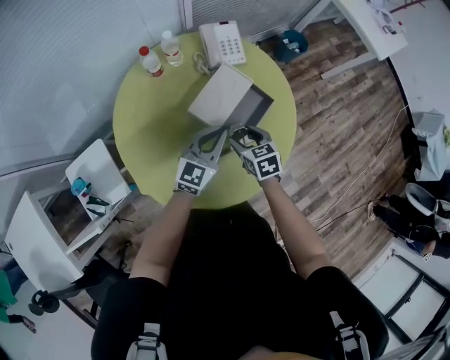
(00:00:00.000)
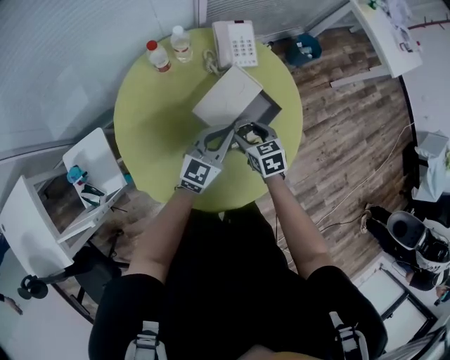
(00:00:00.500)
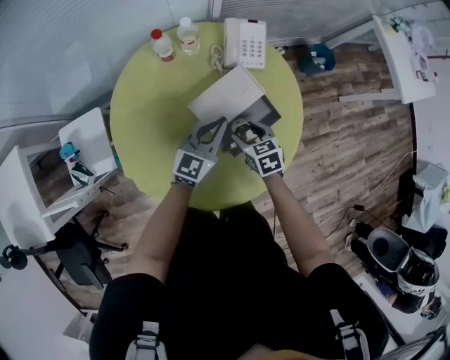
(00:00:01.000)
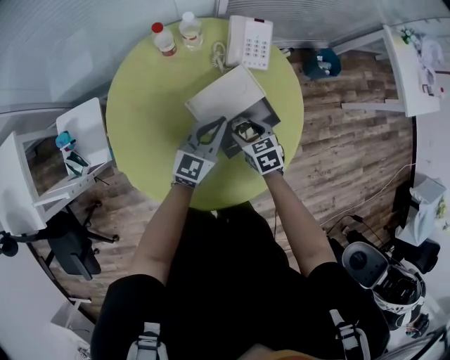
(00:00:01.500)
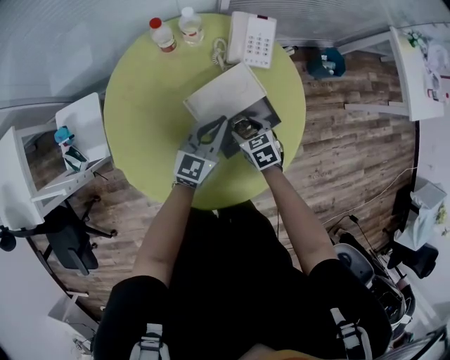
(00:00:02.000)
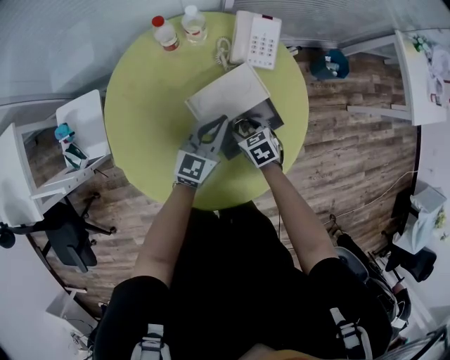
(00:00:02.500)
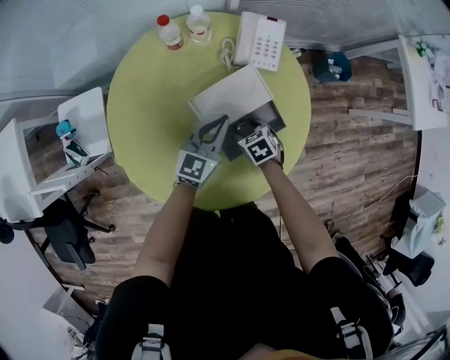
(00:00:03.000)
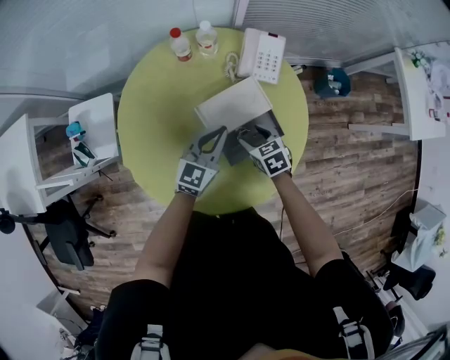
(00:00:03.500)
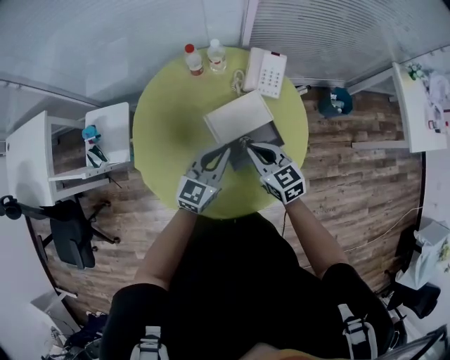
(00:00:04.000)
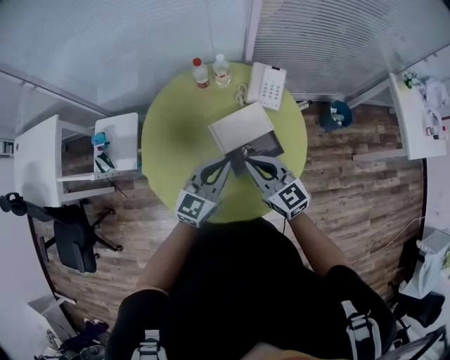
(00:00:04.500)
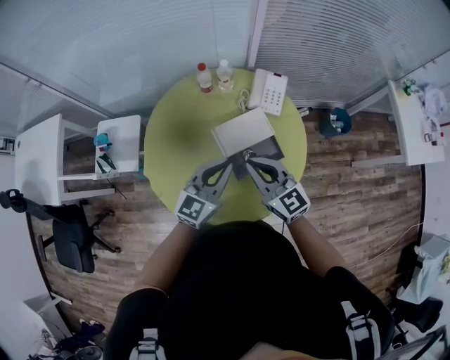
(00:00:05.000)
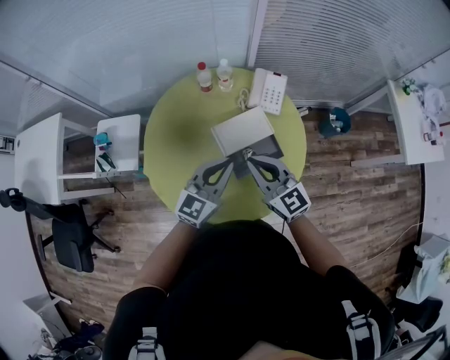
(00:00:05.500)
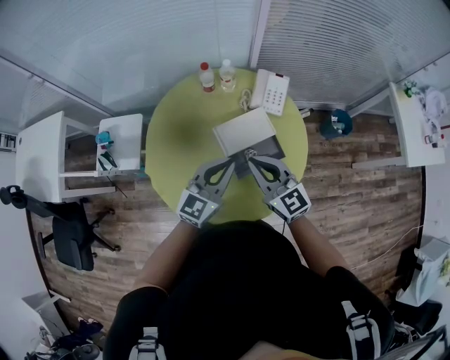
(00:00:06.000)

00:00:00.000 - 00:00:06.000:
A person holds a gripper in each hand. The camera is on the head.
00:00:00.000 - 00:00:02.000: The left gripper changes place by some 10 cm, and changes its angle by approximately 20 degrees, while the right gripper heads downward, covering approximately 10 cm, and rotates roughly 30 degrees.
00:00:02.000 - 00:00:04.000: The left gripper shifts about 10 cm upward and backward, while the right gripper moves upward, approximately 20 cm, turns by about 30 degrees, and closes.
00:00:04.000 - 00:00:06.000: The two grippers go some 10 cm upward. The right gripper changes its angle by about 20 degrees.

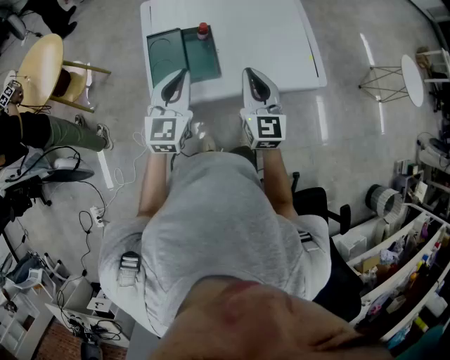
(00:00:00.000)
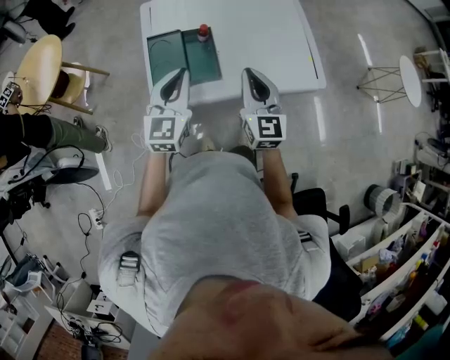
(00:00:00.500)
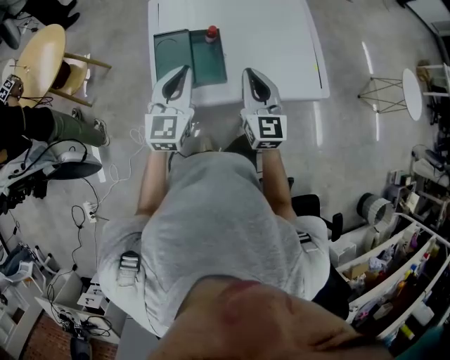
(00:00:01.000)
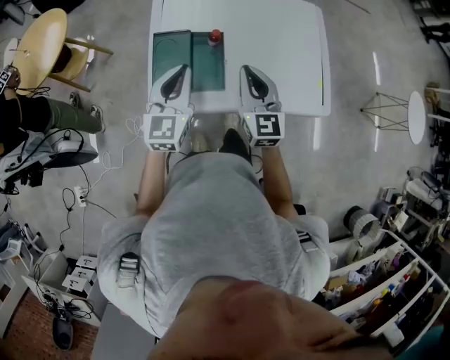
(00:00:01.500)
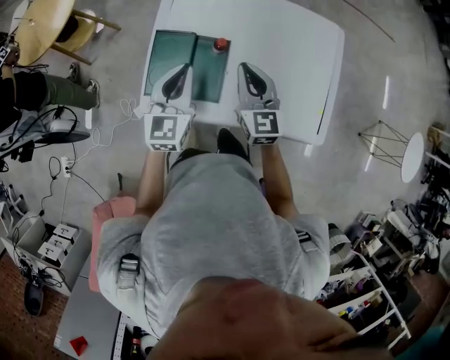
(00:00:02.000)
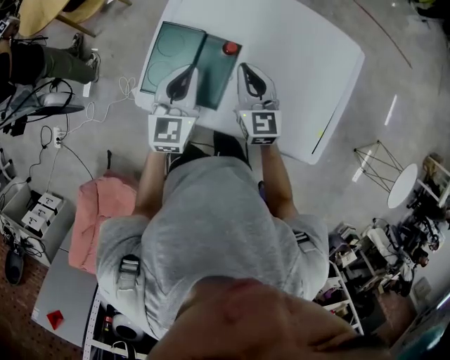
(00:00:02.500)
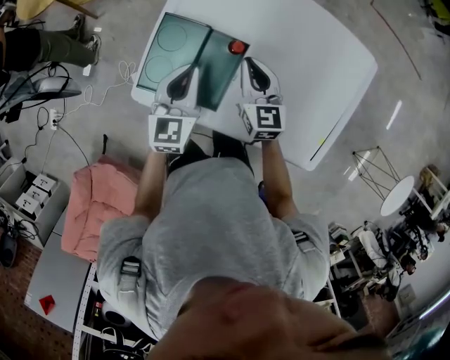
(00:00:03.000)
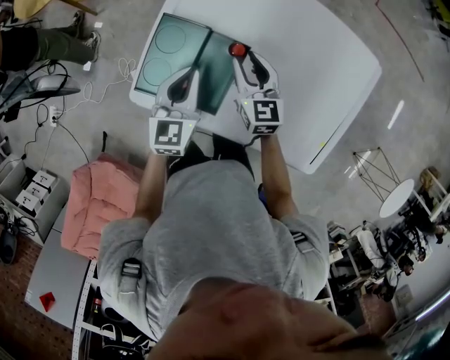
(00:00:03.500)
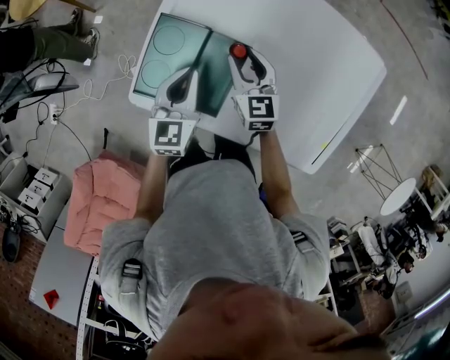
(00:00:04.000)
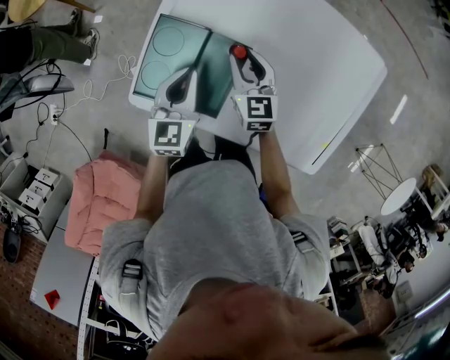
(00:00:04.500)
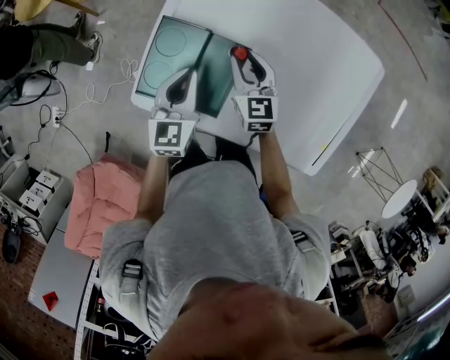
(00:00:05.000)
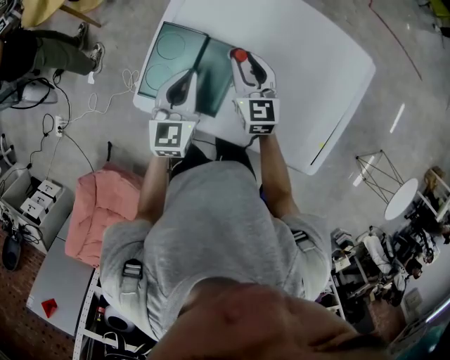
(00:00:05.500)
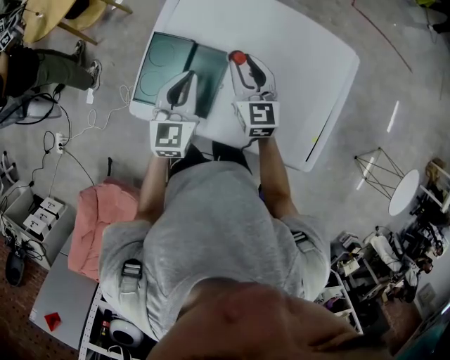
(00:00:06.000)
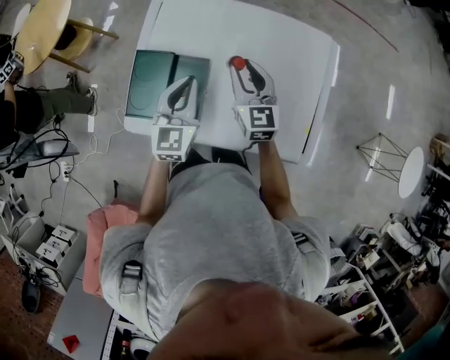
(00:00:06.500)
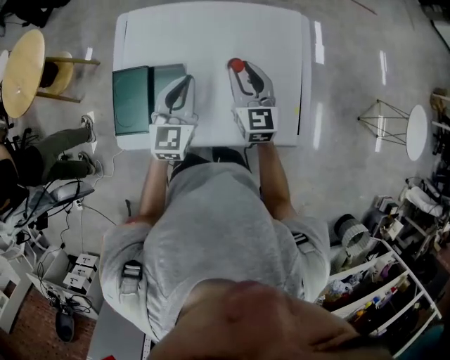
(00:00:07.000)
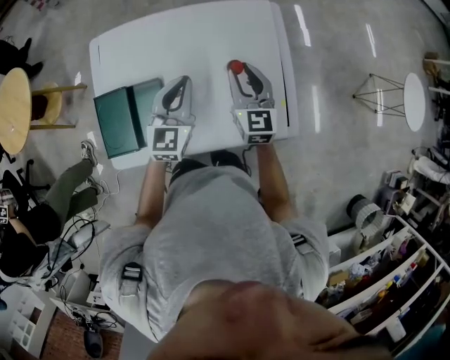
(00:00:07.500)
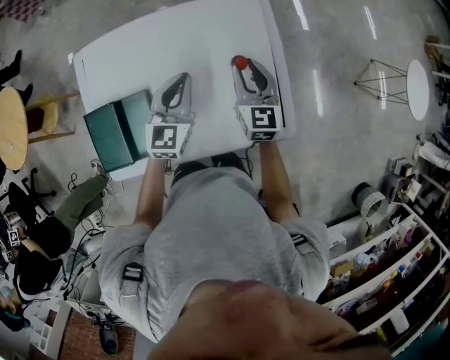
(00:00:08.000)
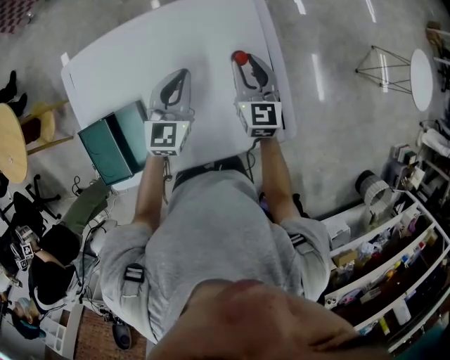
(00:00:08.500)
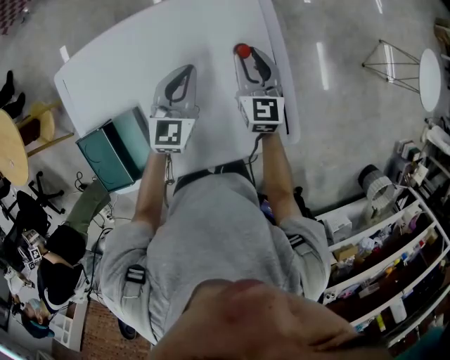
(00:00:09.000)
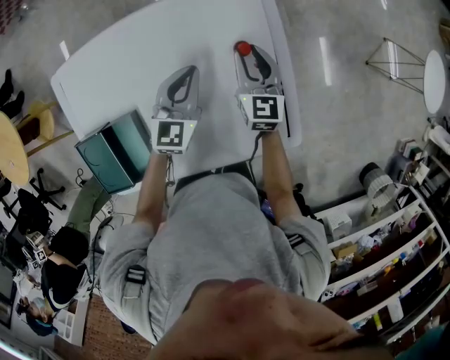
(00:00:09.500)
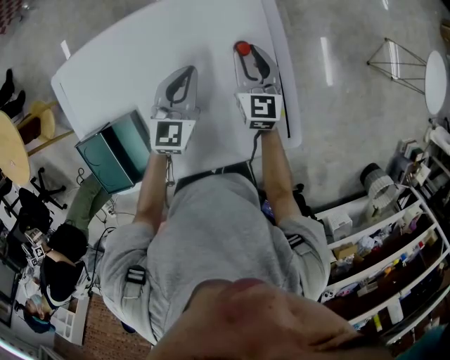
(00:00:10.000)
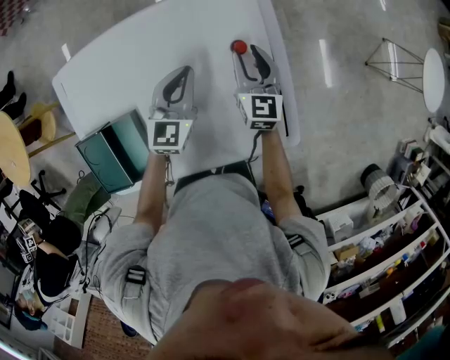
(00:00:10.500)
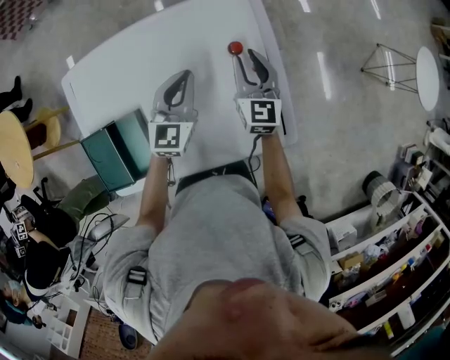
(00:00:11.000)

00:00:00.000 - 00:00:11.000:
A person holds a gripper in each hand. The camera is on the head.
00:00:00.000 - 00:00:02.000: Both grippers travel together forward, some 15 cm. The right gripper turns by roughly 20 degrees.
00:00:02.000 - 00:00:03.500: The left gripper heads downward, covering some 10 cm. The right gripper travels downward and forward by about 15 cm, and opens its fingers.
00:00:03.500 - 00:00:05.500: There are only small adjustments of the grippers.
00:00:05.500 - 00:00:07.500: The left gripper moves about 20 cm, and rotates about 30 degrees. The right gripper moves about 25 cm, and turns by approximately 30 degrees.
00:00:07.500 - 00:00:09.000: Both grippers move forward, downward and to the right, roughly 20 cm.
00:00:09.000 - 00:00:11.000: There are only small adjustments of the grippers.

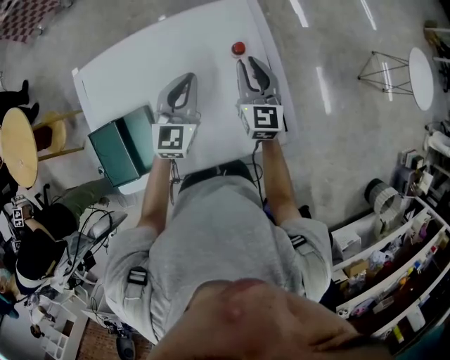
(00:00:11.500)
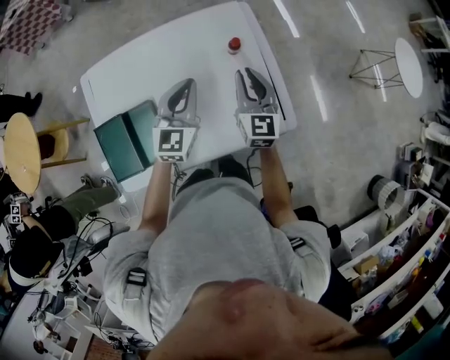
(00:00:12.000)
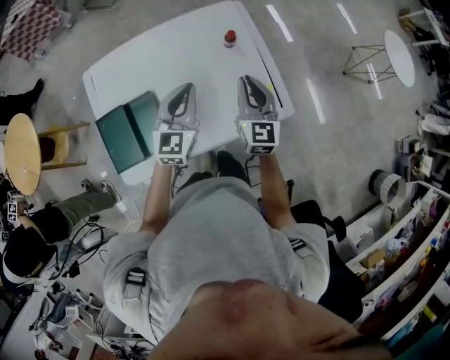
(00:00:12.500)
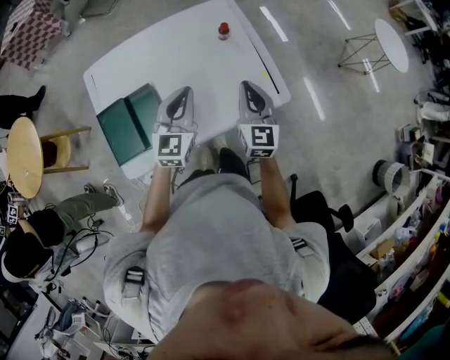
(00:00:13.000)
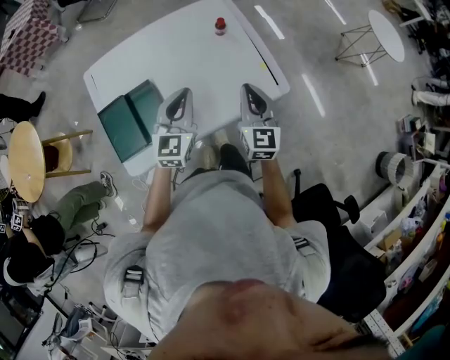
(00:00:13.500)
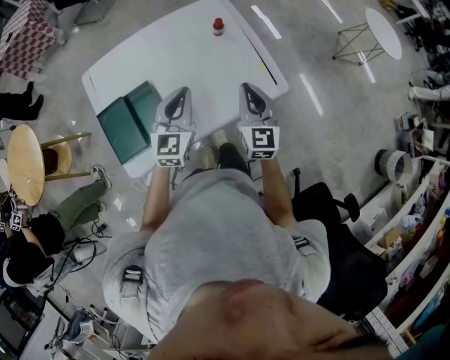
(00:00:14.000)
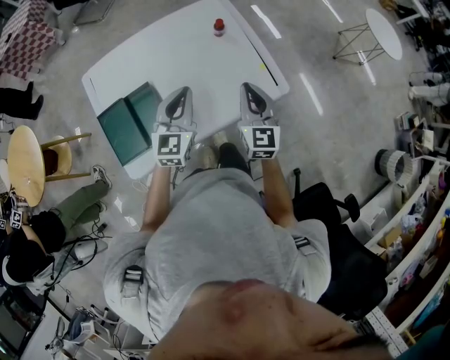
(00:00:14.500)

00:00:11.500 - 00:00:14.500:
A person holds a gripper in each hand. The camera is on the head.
00:00:11.500 - 00:00:13.000: The two grippers go roughly 25 cm backward. The right gripper closes up.
00:00:13.000 - 00:00:14.500: The grippers make only small movements.

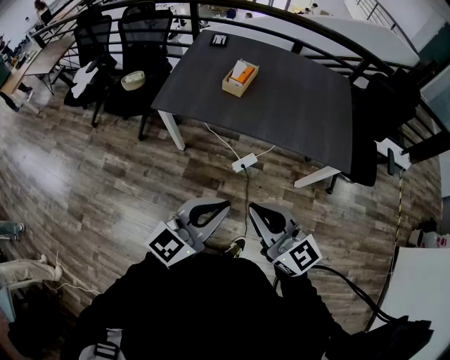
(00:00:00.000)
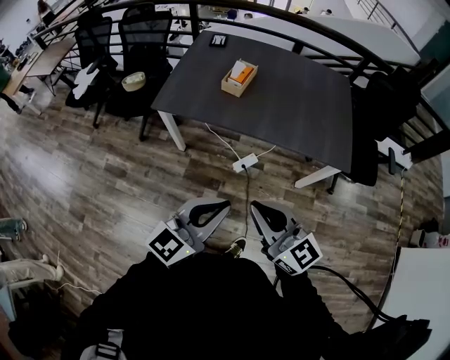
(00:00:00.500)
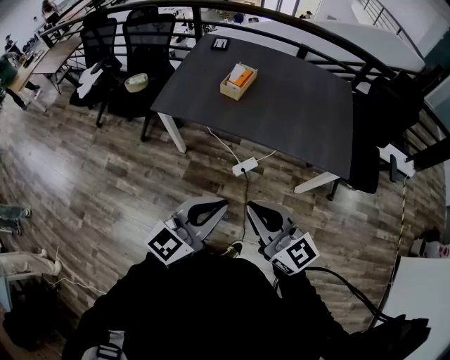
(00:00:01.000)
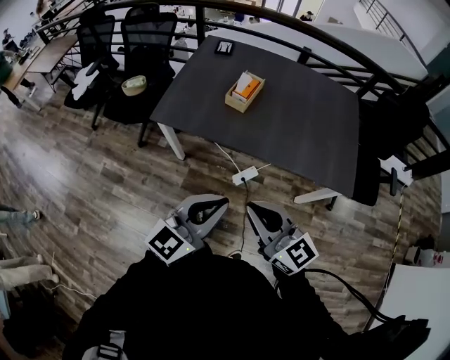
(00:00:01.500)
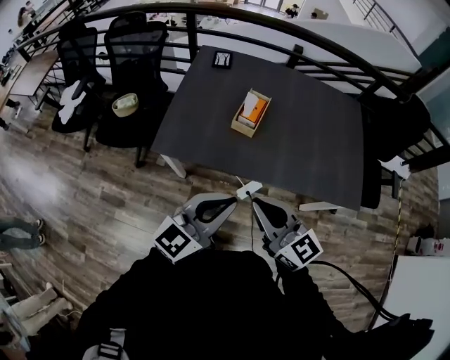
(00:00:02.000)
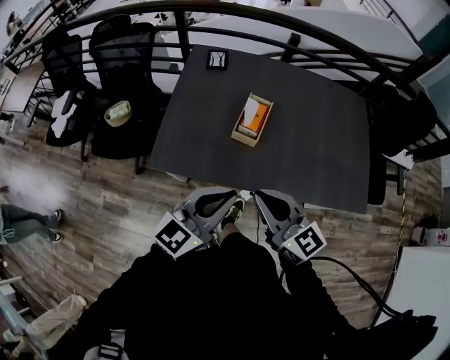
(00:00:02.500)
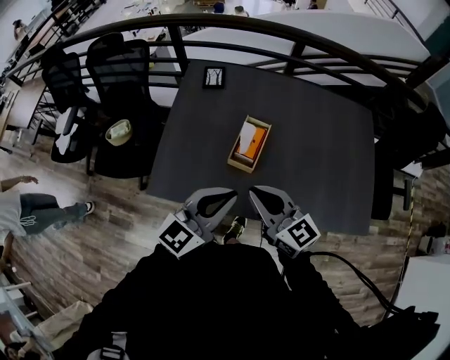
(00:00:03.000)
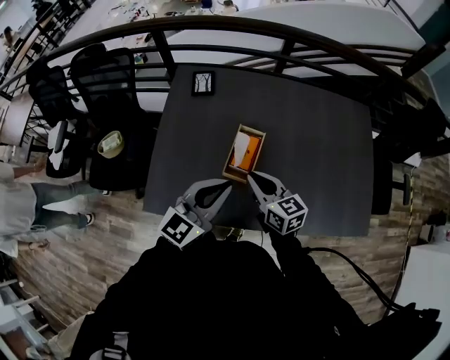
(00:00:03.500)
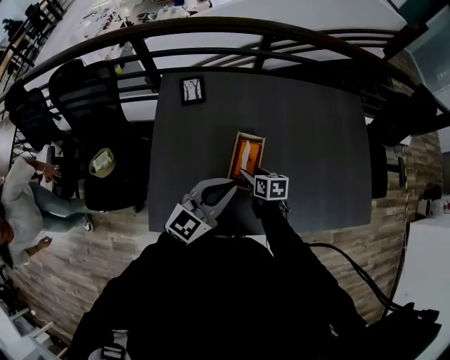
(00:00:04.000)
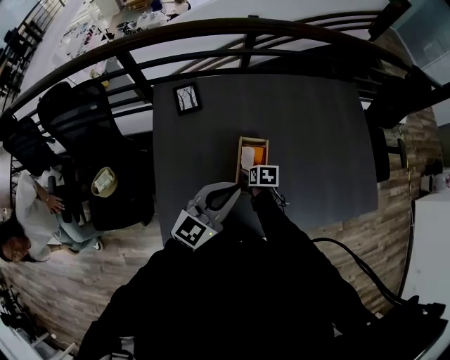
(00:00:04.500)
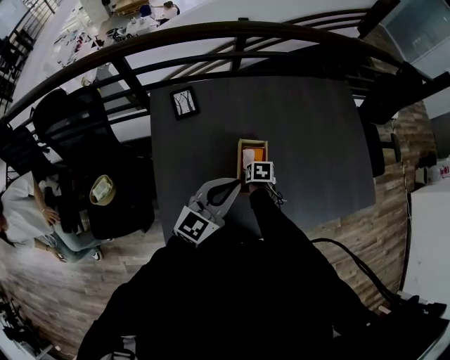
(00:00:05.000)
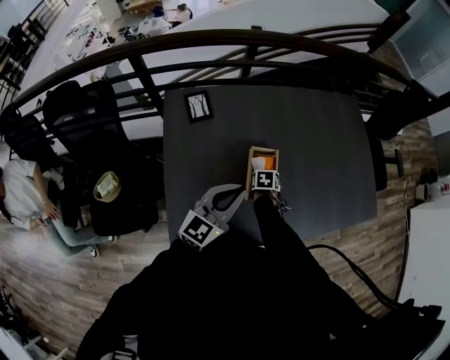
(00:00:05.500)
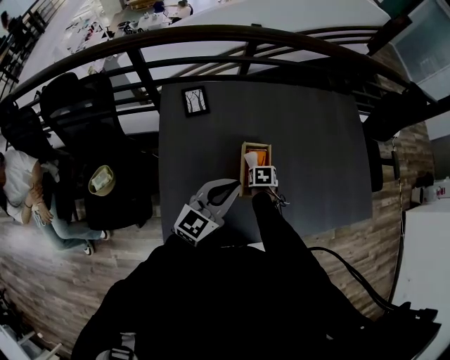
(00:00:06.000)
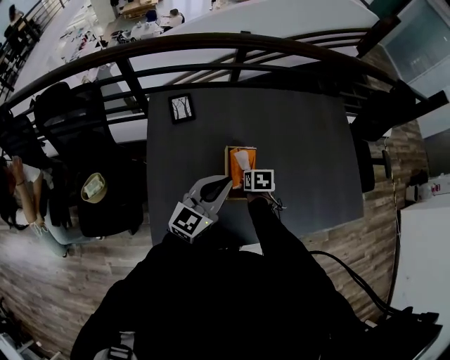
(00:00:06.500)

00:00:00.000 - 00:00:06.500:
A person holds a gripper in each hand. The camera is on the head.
00:00:00.000 - 00:00:02.000: The grippers both shift forward by about 25 cm.
00:00:02.000 - 00:00:04.500: Both grippers are carried forward, roughly 40 cm. The right gripper travels downward by about 35 cm, tilts its fingers approximately 60 degrees downward, and opens.
00:00:04.500 - 00:00:06.500: The right gripper is displaced upward by roughly 5 cm, and closes up.
